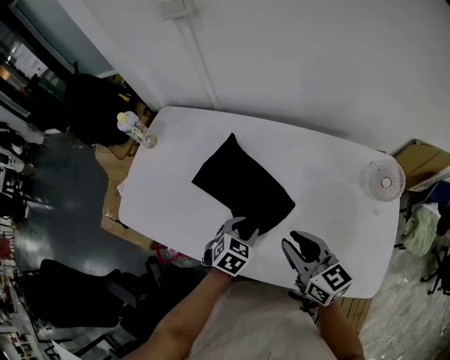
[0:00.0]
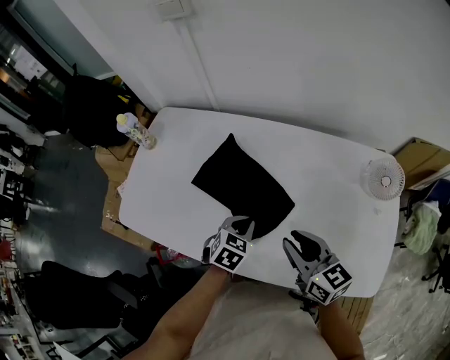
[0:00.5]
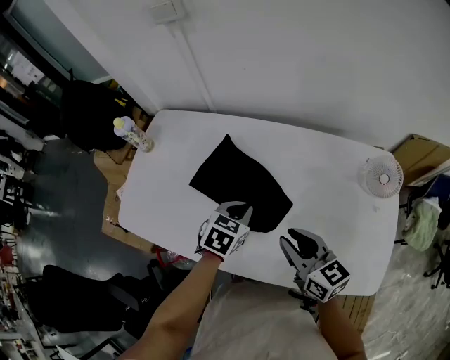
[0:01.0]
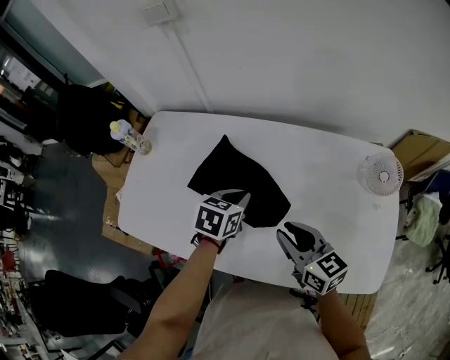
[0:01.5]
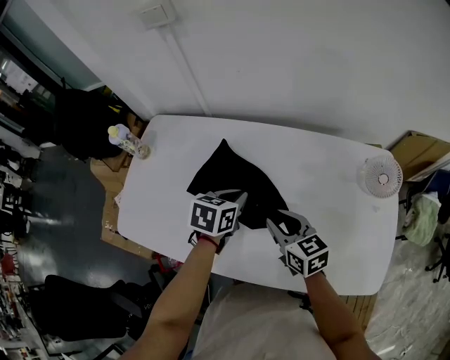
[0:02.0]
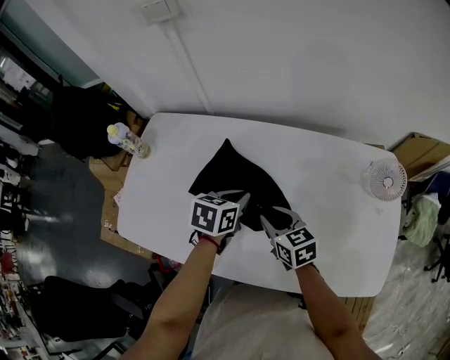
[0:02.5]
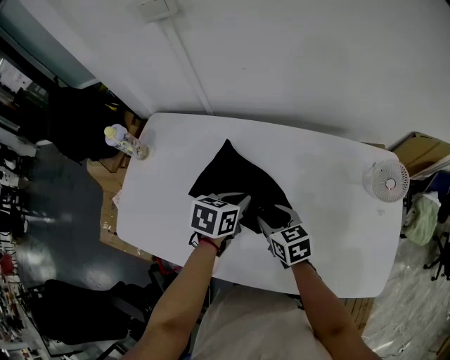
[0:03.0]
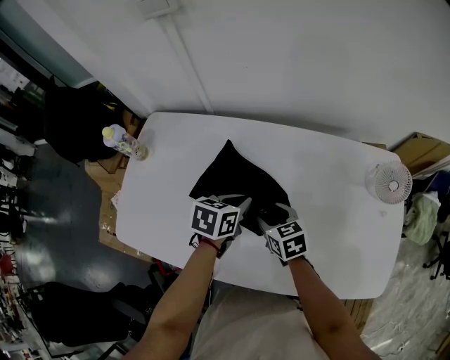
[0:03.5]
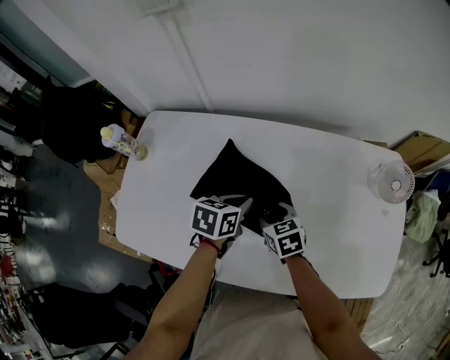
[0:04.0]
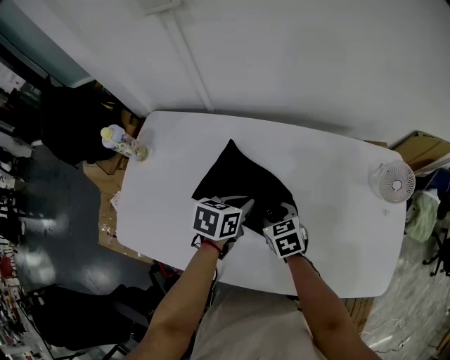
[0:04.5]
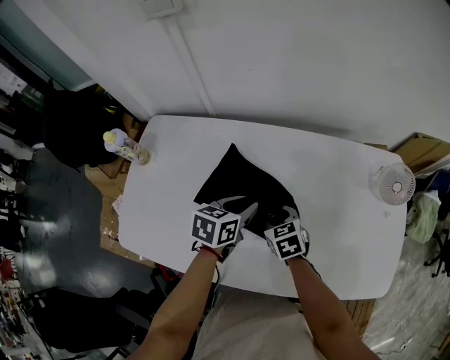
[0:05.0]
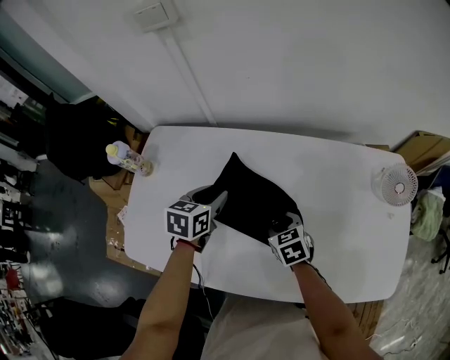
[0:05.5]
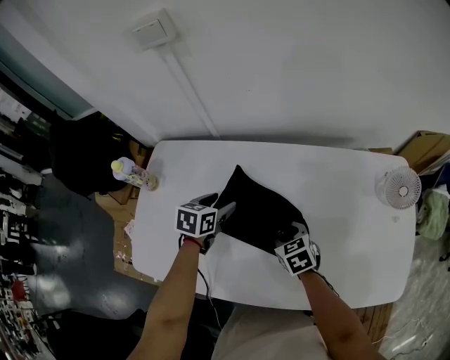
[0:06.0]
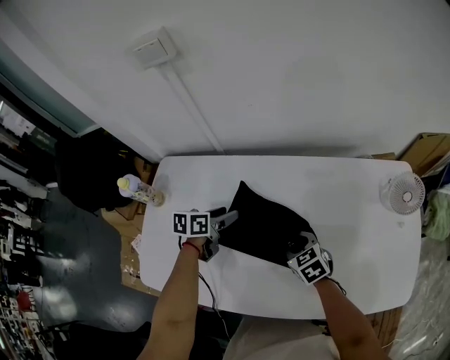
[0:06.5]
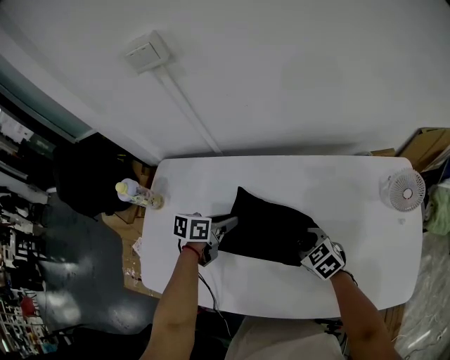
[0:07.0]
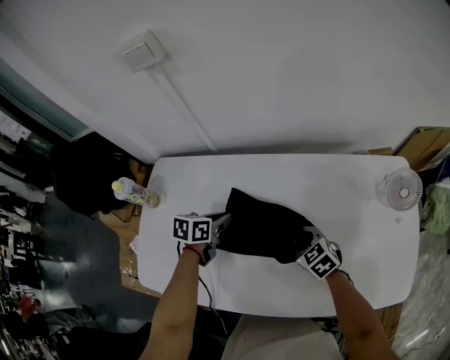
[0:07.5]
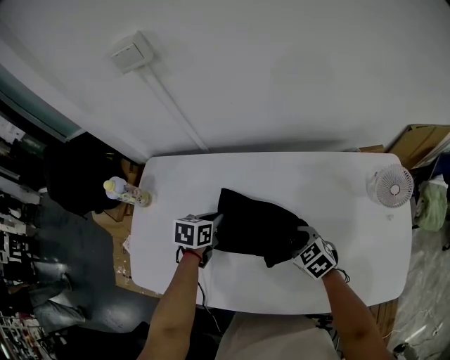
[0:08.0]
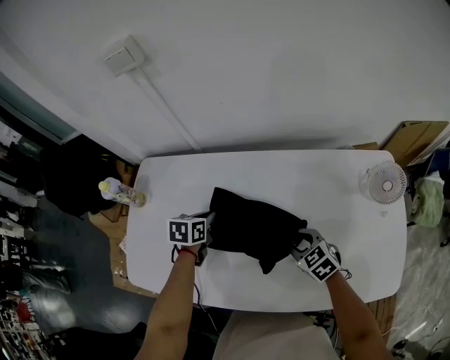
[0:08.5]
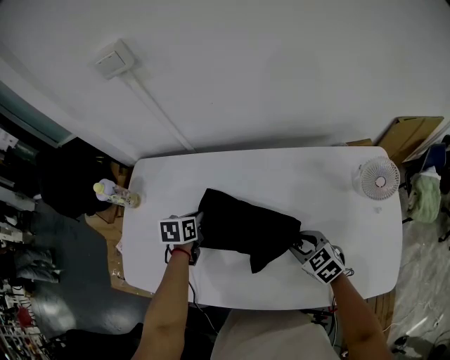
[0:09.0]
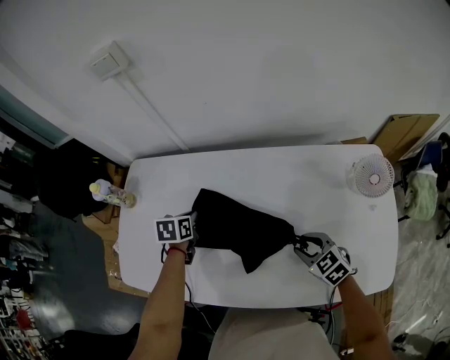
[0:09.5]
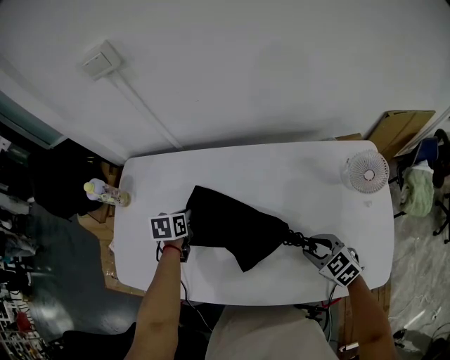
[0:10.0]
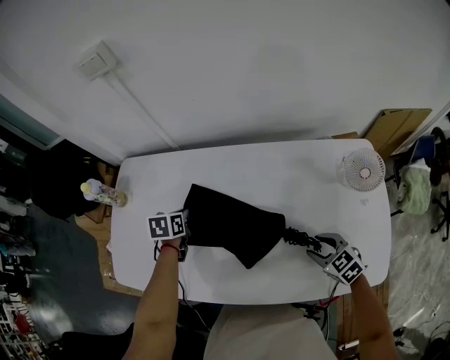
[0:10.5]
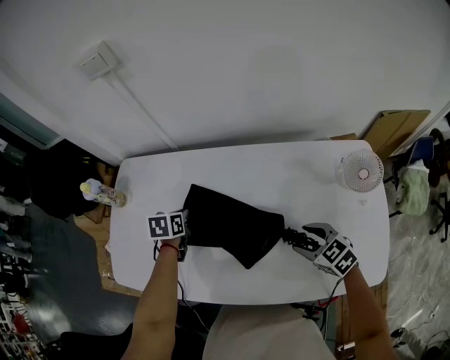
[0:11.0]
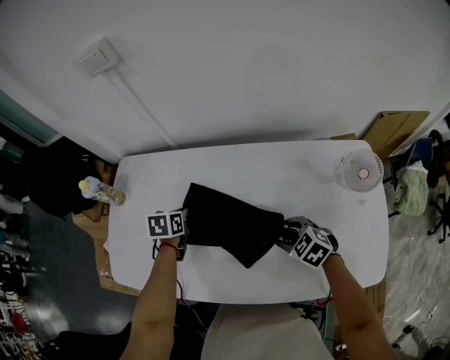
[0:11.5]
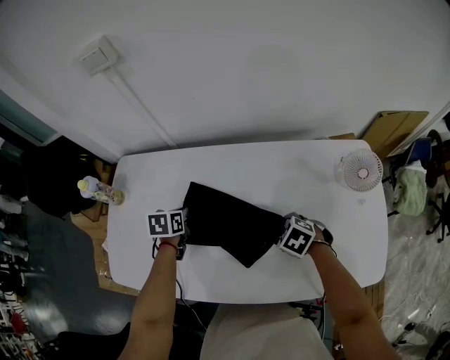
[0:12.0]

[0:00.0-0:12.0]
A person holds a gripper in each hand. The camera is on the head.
0:00.0 to 0:02.0: The left gripper goes about 15 cm forward and upward, swivels some 20 degrees, and closes. Meanwhile the right gripper shifts about 10 cm forward and downward.
0:02.0 to 0:04.0: The right gripper heads downward, to the left and forward, covering about 15 cm, and opens up.
0:04.0 to 0:06.0: The left gripper is displaced to the left and forward by roughly 15 cm, and opens.
0:06.0 to 0:08.0: The right gripper goes approximately 5 cm to the right. Meanwhile the left gripper closes up.
0:08.0 to 0:10.0: The right gripper moves to the right and backward, roughly 15 cm.
0:10.0 to 0:12.0: The right gripper heads forward and to the left, covering approximately 10 cm, and turns by some 30 degrees.

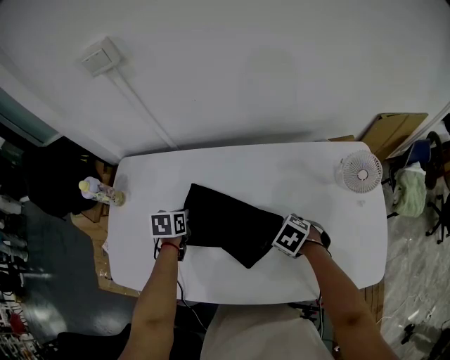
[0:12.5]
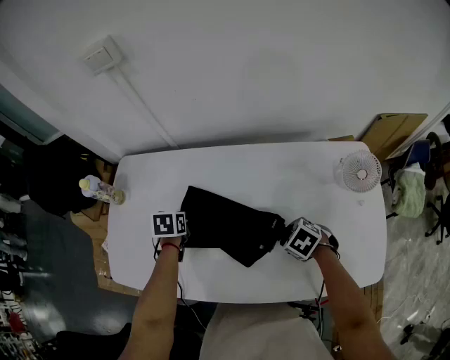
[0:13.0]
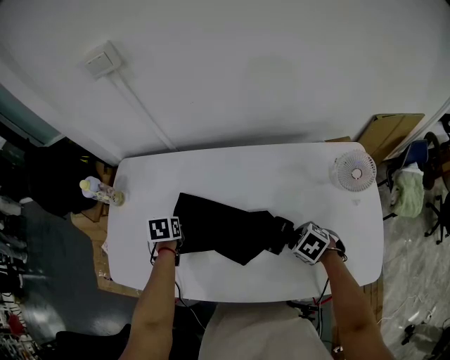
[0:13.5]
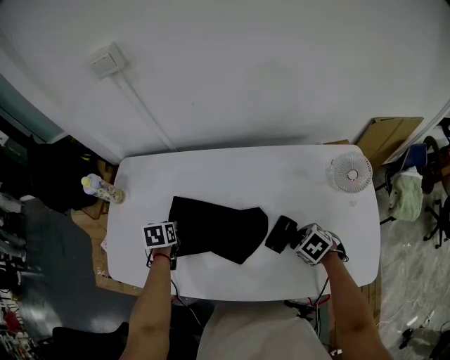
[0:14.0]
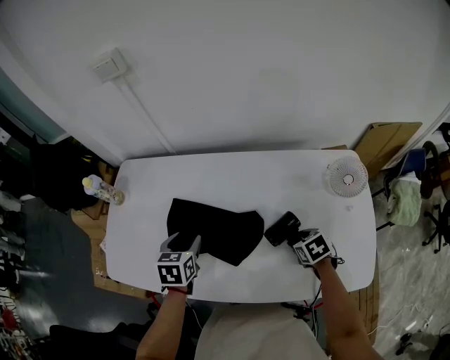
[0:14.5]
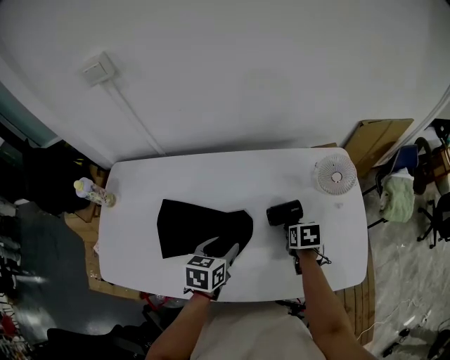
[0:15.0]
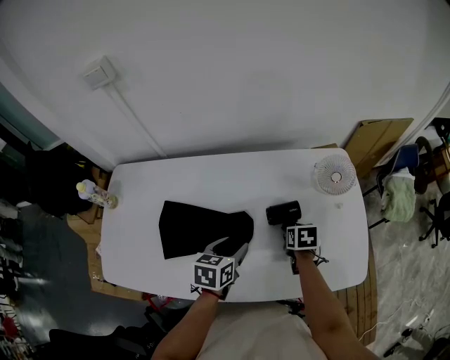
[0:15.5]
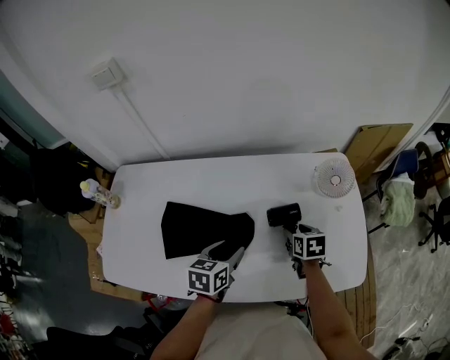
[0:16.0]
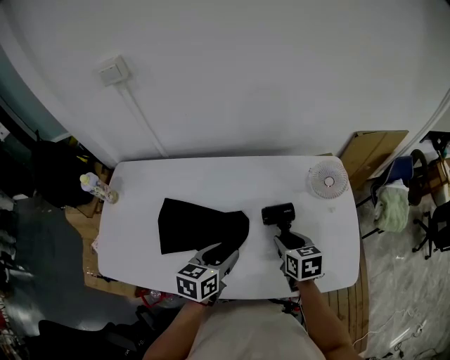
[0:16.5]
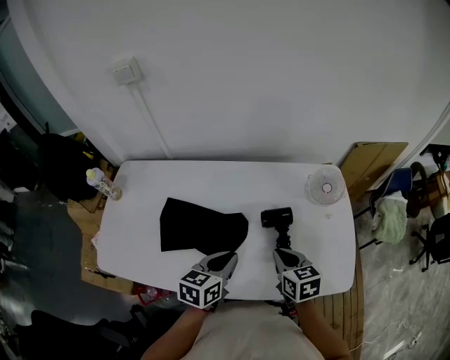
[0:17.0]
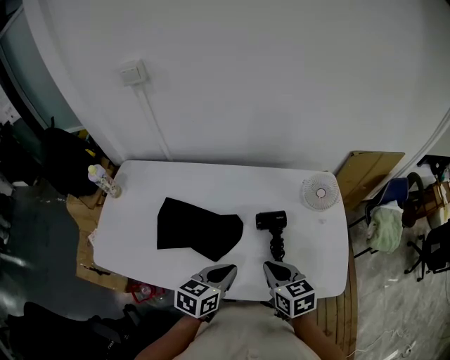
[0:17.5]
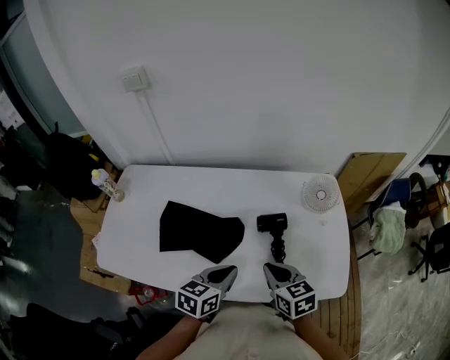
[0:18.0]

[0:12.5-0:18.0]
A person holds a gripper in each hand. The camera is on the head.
0:12.5 to 0:14.5: The right gripper ends up some 10 cm from where it was, and changes its angle by approximately 30 degrees, while the left gripper moves roughly 15 cm, and opens its fingers.
0:14.5 to 0:16.0: The left gripper ends up some 15 cm from where it was, and rotates some 20 degrees; the right gripper moves roughly 5 cm, and changes its angle by about 30 degrees.
0:16.0 to 0:18.0: The left gripper goes approximately 15 cm backward, upward and to the right, and closes up; the right gripper travels backward and upward by some 20 cm, turns by some 30 degrees, and closes its fingers.

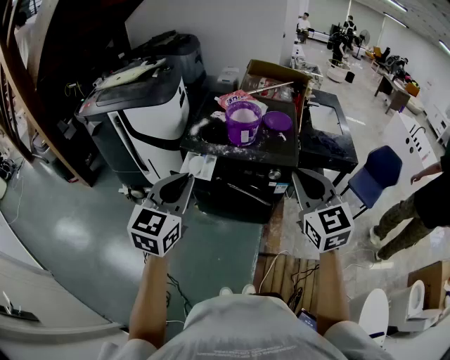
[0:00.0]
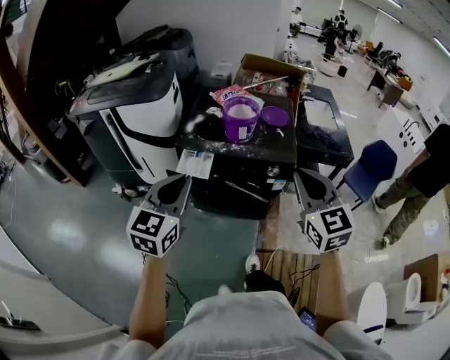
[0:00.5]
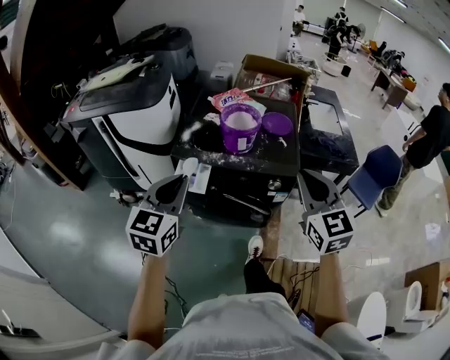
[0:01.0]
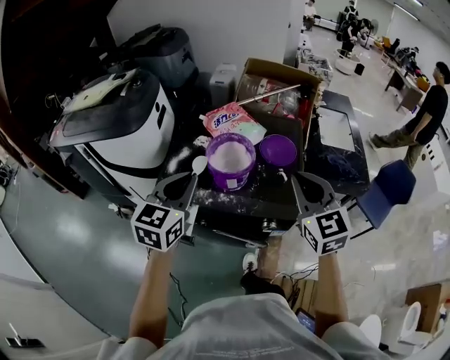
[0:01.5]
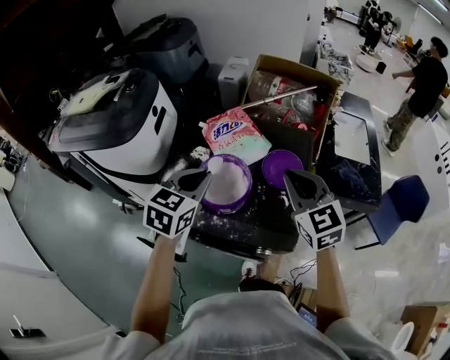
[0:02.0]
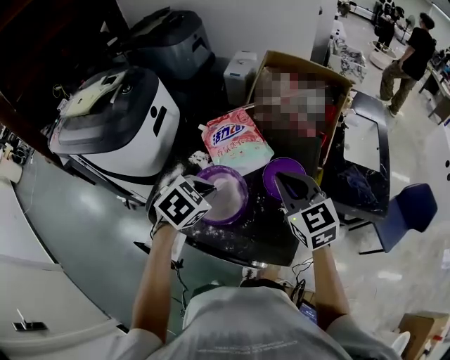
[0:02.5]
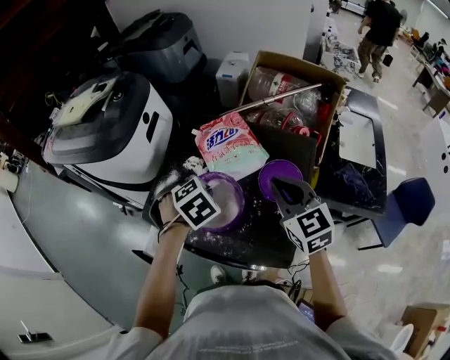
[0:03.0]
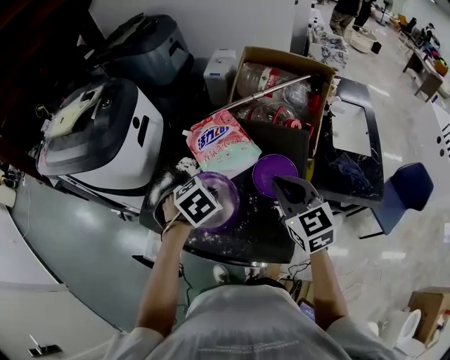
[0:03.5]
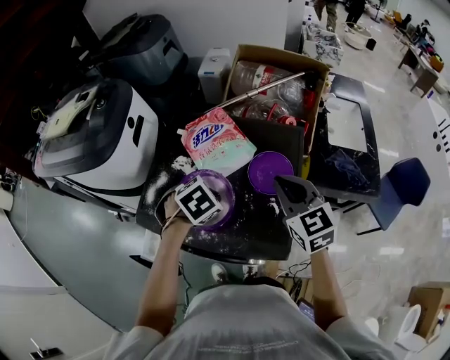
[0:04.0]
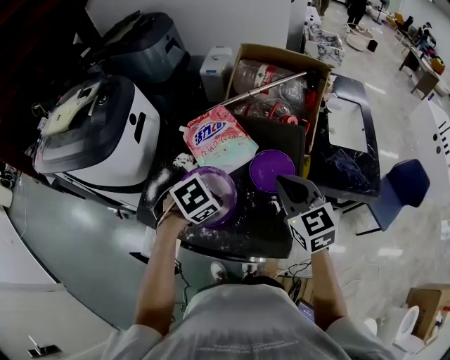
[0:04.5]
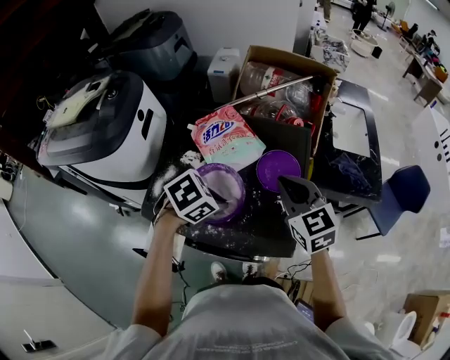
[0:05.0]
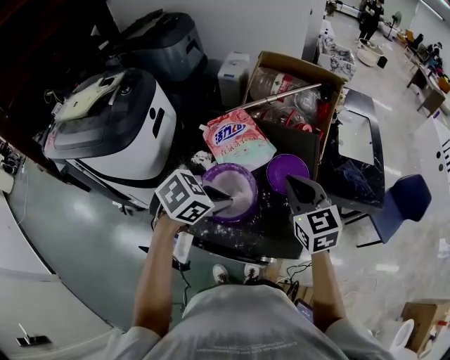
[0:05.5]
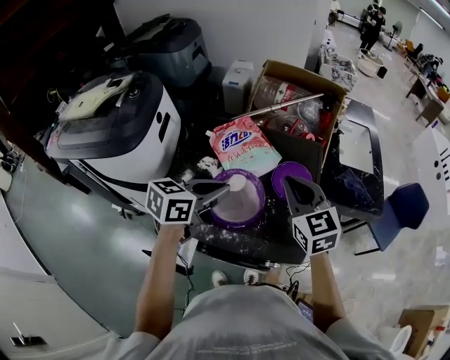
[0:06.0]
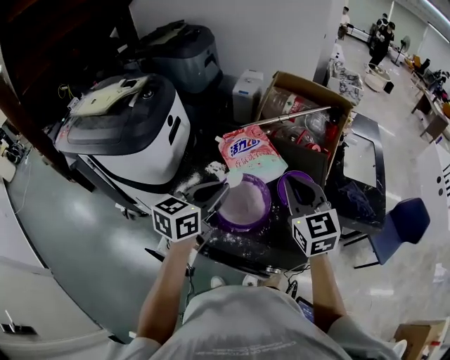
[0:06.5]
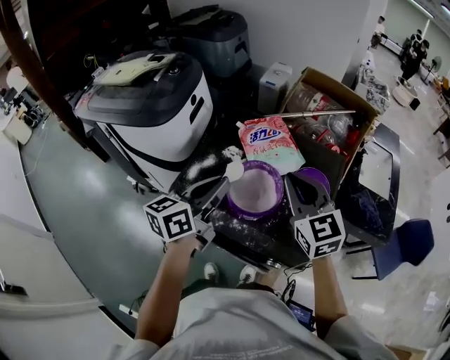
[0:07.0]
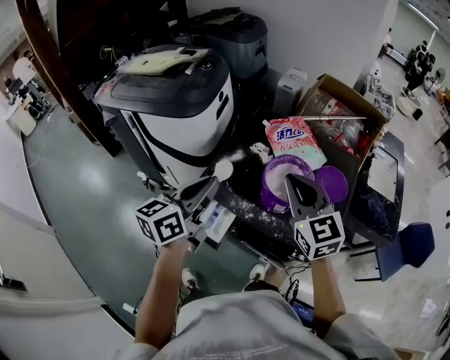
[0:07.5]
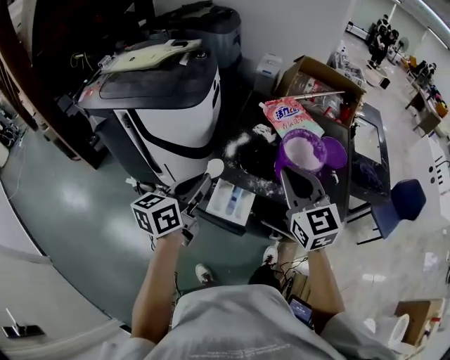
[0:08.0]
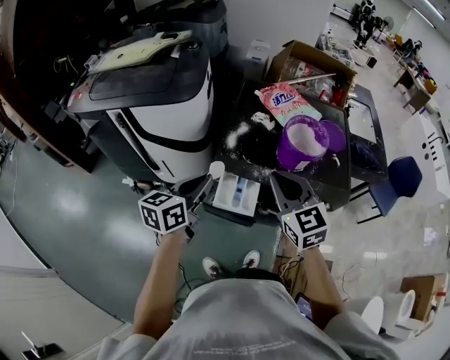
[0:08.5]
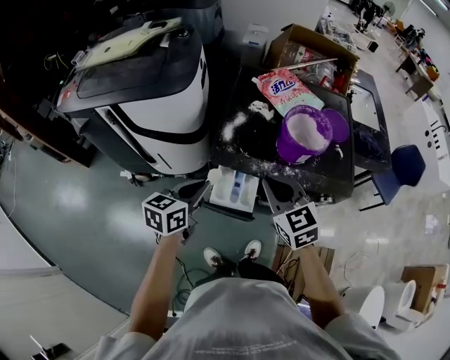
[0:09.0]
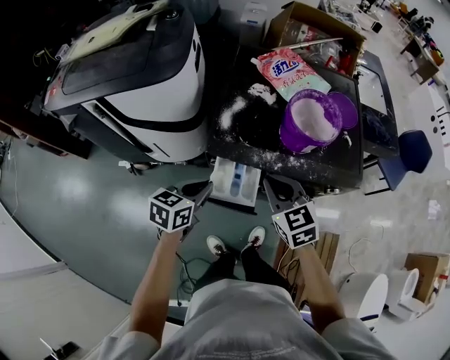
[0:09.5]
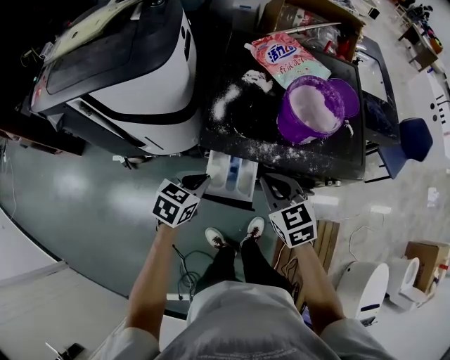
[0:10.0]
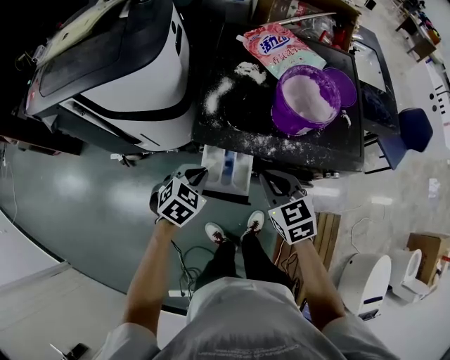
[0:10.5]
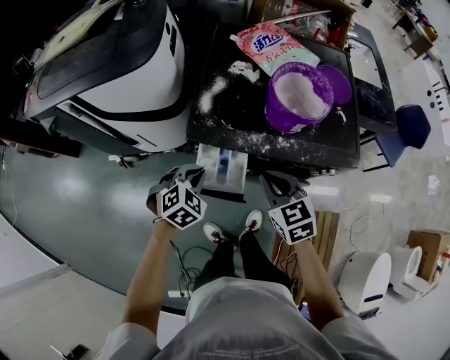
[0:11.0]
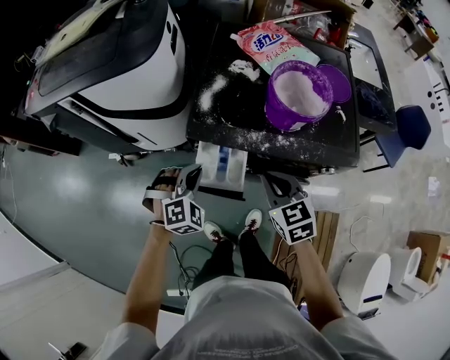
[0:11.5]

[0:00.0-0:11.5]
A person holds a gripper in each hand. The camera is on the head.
0:00.0 to 0:02.0: The pair of grippers is taken forward, roughly 50 cm. The left gripper turns by about 20 degrees.
0:02.0 to 0:04.0: The left gripper goes roughly 15 cm downward and to the right, and angles its fingers downward, by about 40 degrees. Meanwhile the right gripper is displaced downward by some 5 cm.
0:04.0 to 0:06.0: The left gripper heads upward and to the left, covering roughly 10 cm, and points its fingers approximately 50 degrees further upward, while the right gripper travels to the left by roughly 5 cm.
0:06.0 to 0:07.5: The grippers both shift to the left and backward by some 20 cm. The left gripper swivels roughly 40 degrees.
0:07.5 to 0:09.5: The right gripper moves downward, to the left and backward, roughly 25 cm, and changes its angle by about 30 degrees; the left gripper travels downward and to the left by roughly 25 cm, and angles its fingers downward, by some 30 degrees.
0:09.5 to 0:11.5: The right gripper heads downward, covering approximately 5 cm. The left gripper ends up some 5 cm from where it was, and rolls clockwise, seen from behind, by roughly 70 degrees.
